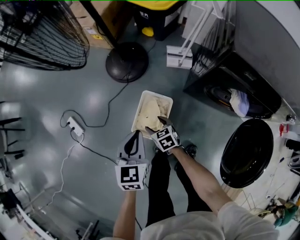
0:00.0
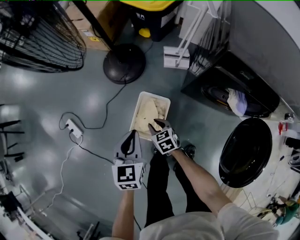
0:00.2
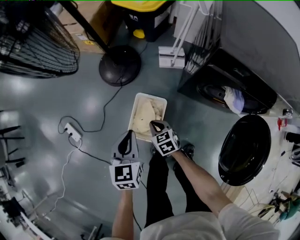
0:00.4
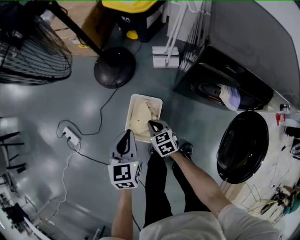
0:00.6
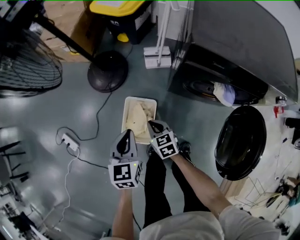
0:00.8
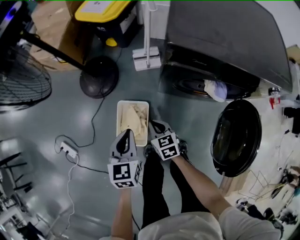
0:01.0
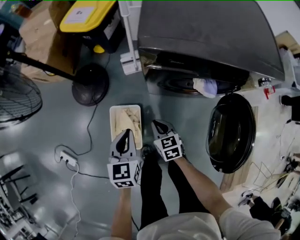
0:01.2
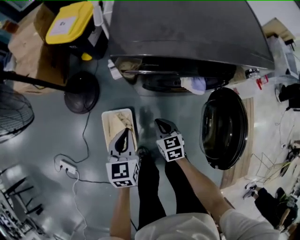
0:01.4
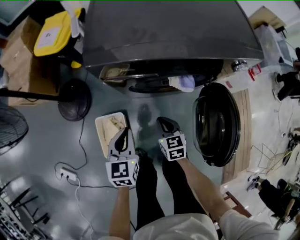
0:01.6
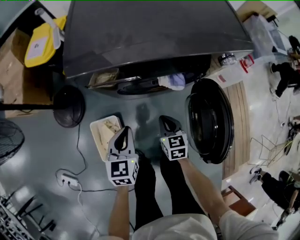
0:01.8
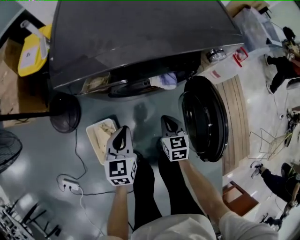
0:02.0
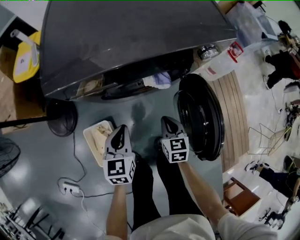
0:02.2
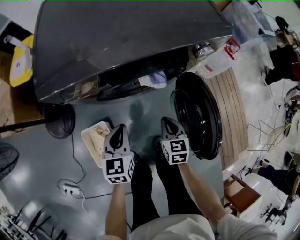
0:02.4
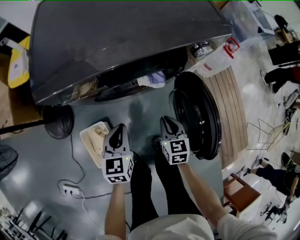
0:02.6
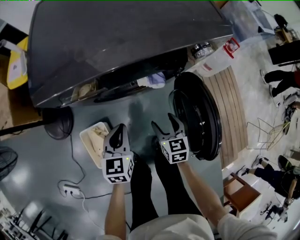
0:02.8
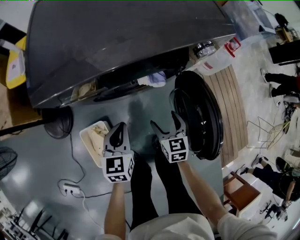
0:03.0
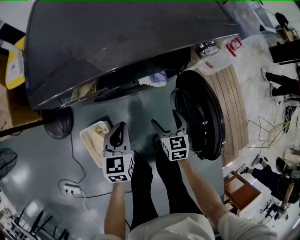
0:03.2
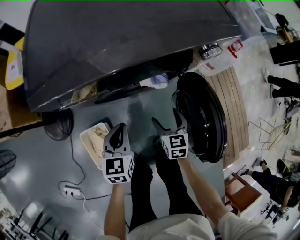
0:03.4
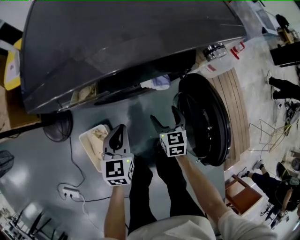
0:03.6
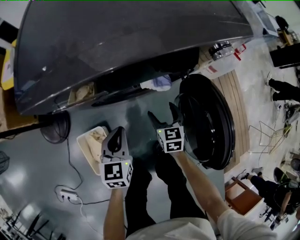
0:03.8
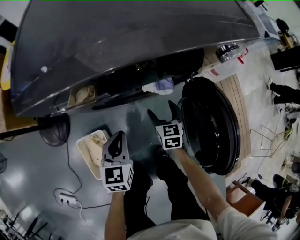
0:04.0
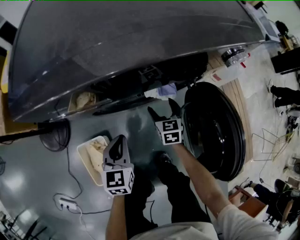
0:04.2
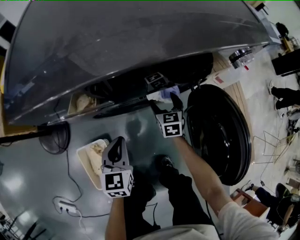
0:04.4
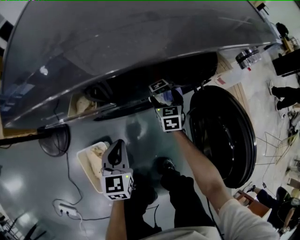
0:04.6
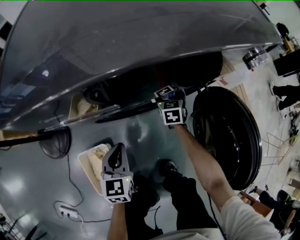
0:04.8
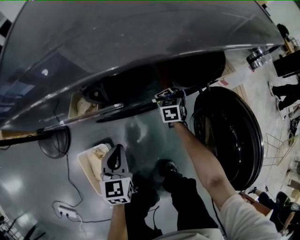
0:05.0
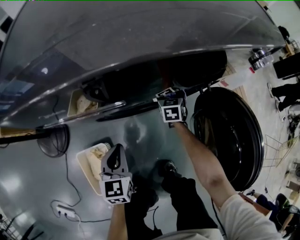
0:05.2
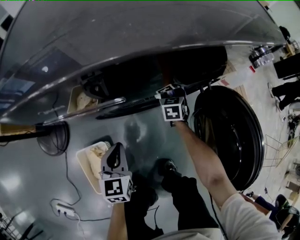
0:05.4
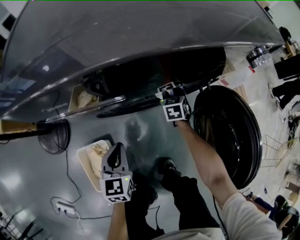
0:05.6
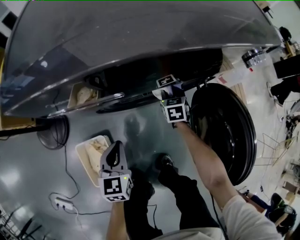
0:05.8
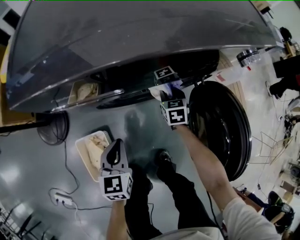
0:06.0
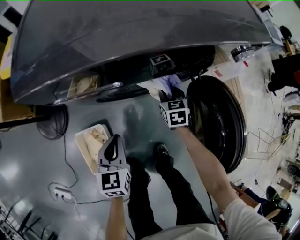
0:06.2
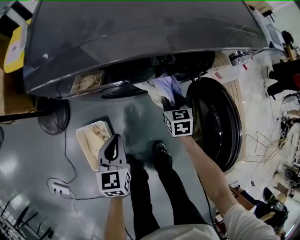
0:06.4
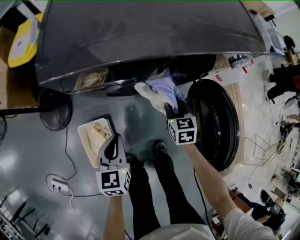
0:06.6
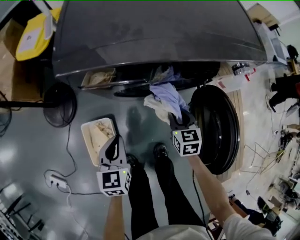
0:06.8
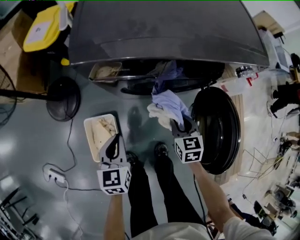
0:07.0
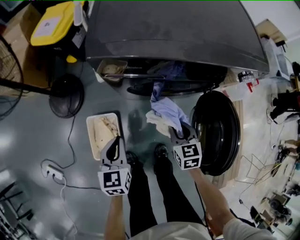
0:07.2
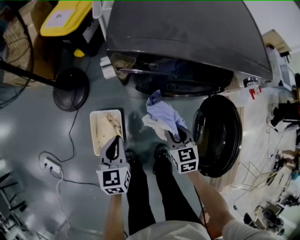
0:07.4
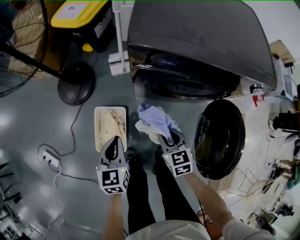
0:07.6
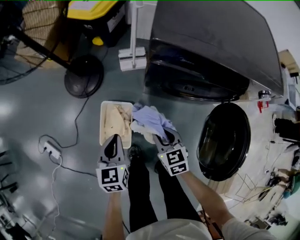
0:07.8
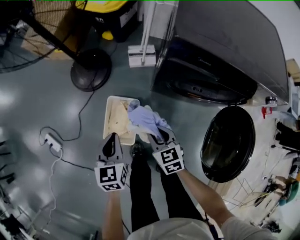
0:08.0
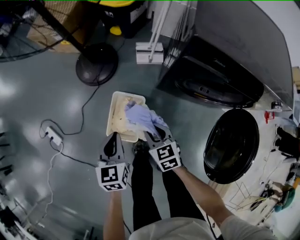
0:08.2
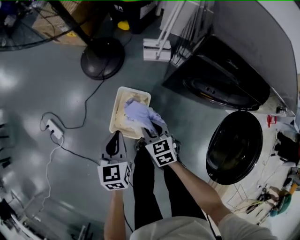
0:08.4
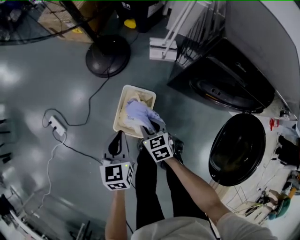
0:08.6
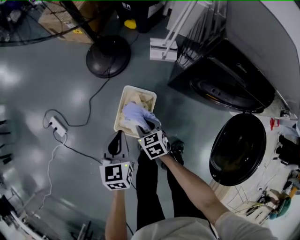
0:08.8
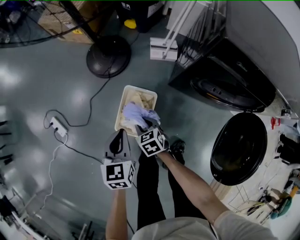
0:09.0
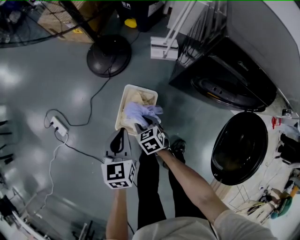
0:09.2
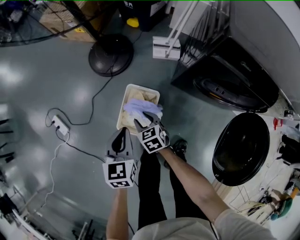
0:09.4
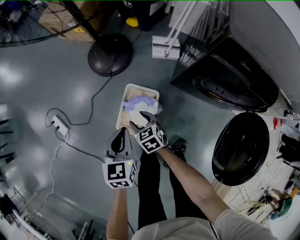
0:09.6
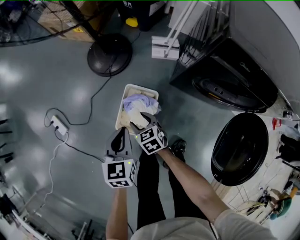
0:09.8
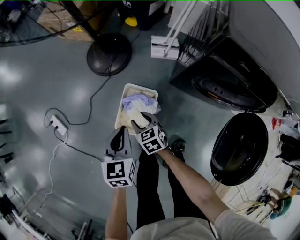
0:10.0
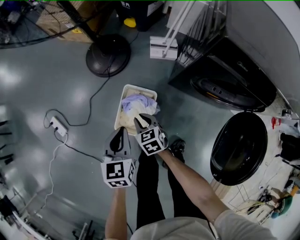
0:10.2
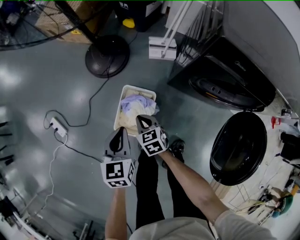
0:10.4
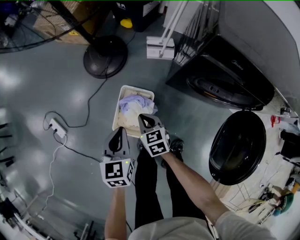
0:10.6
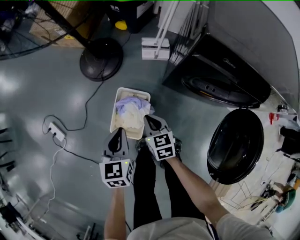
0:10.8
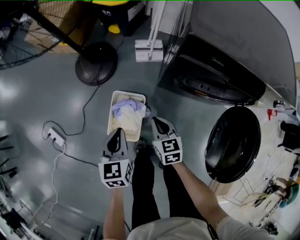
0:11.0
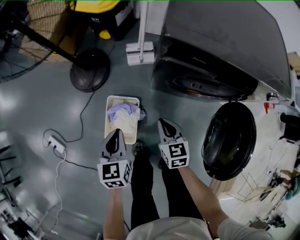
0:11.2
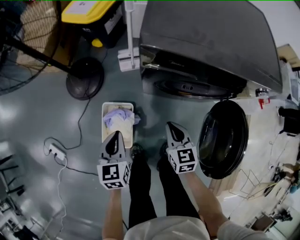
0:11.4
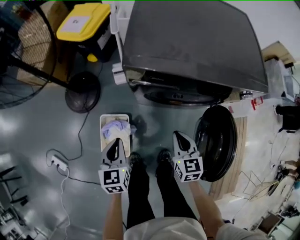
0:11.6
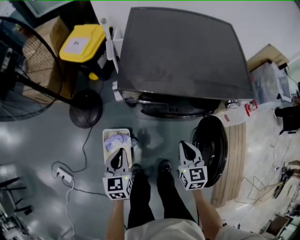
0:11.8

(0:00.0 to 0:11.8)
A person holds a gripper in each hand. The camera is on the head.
0:00.0 - 0:01.4: The right gripper ends up roughly 30 cm from where it was, swivels approximately 40 degrees, and closes, while the left gripper shifts by some 25 cm, and turns by about 20 degrees.
0:01.4 - 0:03.0: The left gripper goes roughly 20 cm to the right and forward. Meanwhile the right gripper heads to the right, covering about 20 cm, rotates about 20 degrees, and opens.
0:03.0 - 0:04.4: The right gripper shifts approximately 20 cm forward and downward; the left gripper moves downward, roughly 10 cm.
0:04.4 - 0:06.0: The right gripper closes its fingers.
0:06.0 - 0:07.4: The left gripper travels to the left, upward and backward by roughly 20 cm; the right gripper is displaced backward, upward and to the left by about 30 cm, and swivels roughly 20 degrees.
0:07.4 - 0:08.8: The right gripper moves about 35 cm, and swivels roughly 30 degrees, while the left gripper moves about 20 cm, and swivels roughly 20 degrees.
0:08.8 - 0:10.4: The grippers move only a little.
0:10.4 - 0:11.8: The left gripper moves about 25 cm. Meanwhile the right gripper changes place by about 50 cm, and turns by some 40 degrees.

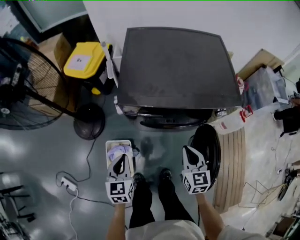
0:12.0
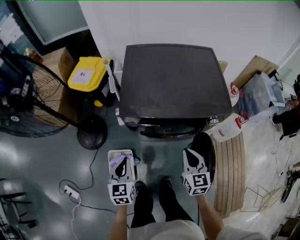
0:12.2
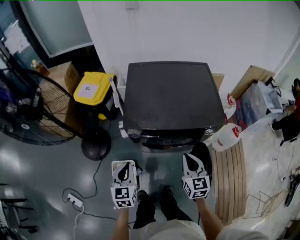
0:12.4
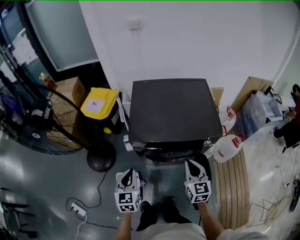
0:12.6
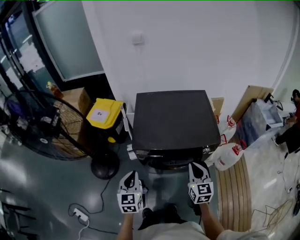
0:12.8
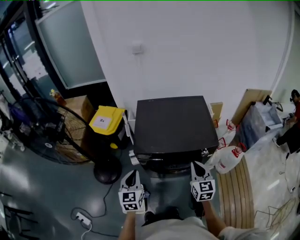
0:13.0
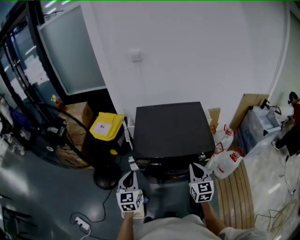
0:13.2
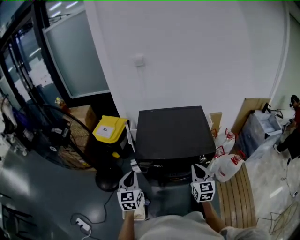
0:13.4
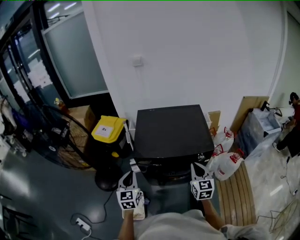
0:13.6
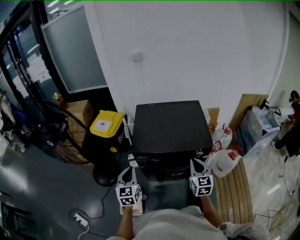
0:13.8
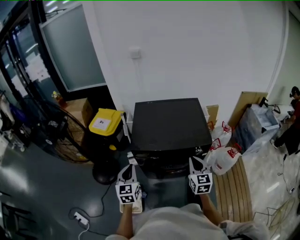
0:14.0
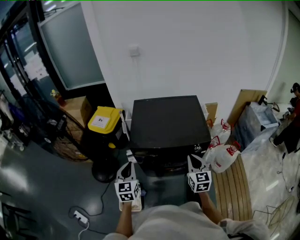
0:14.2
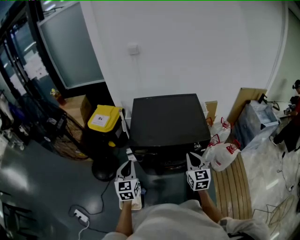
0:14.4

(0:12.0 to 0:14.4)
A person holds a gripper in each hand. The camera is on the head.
0:12.0 - 0:13.2: The two grippers go some 25 cm upward.
0:13.2 - 0:14.4: The grippers move only a little.

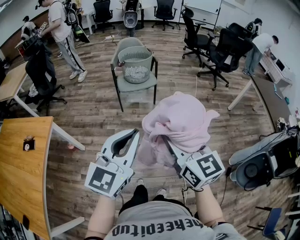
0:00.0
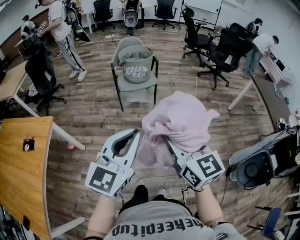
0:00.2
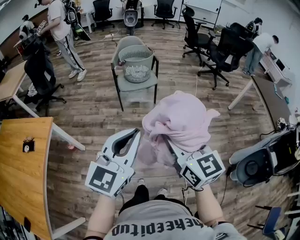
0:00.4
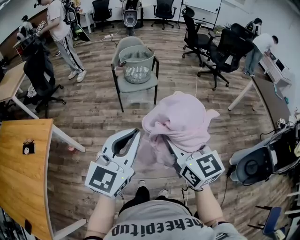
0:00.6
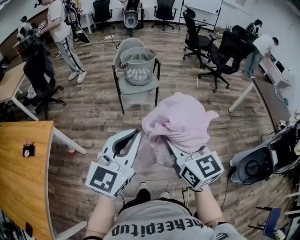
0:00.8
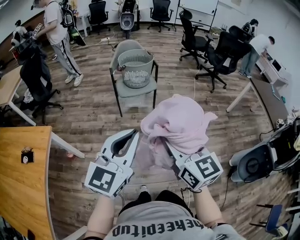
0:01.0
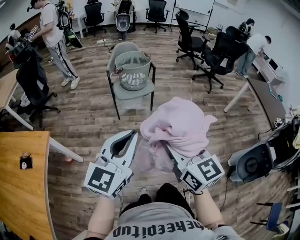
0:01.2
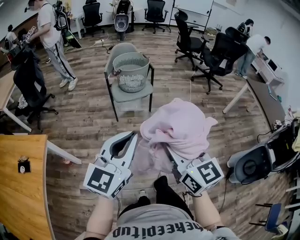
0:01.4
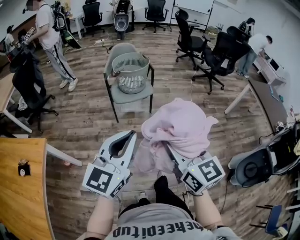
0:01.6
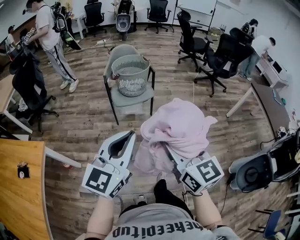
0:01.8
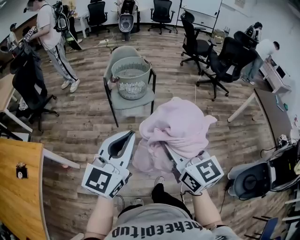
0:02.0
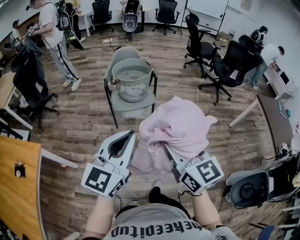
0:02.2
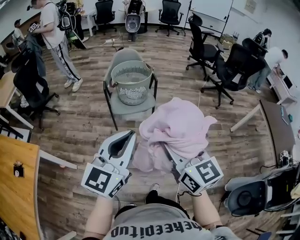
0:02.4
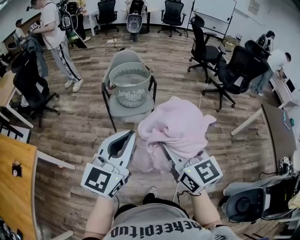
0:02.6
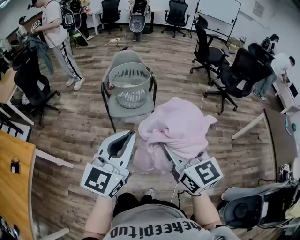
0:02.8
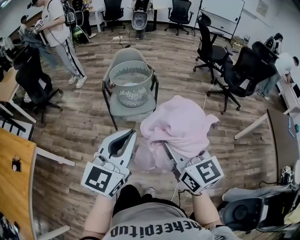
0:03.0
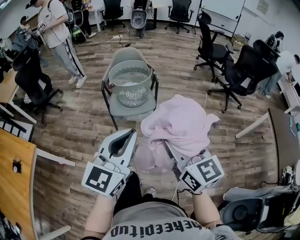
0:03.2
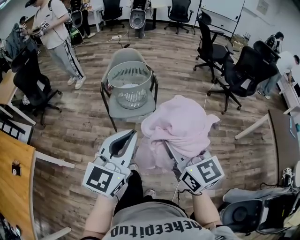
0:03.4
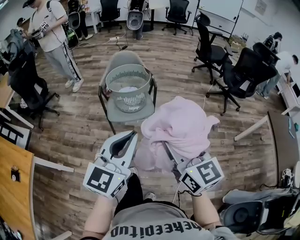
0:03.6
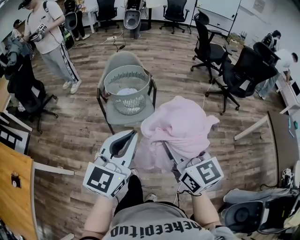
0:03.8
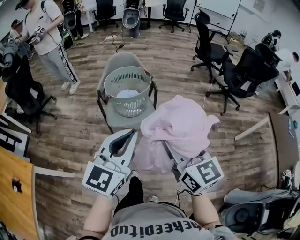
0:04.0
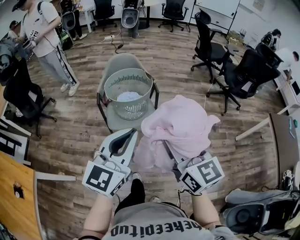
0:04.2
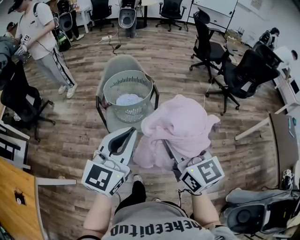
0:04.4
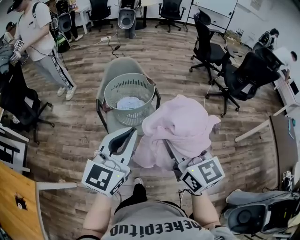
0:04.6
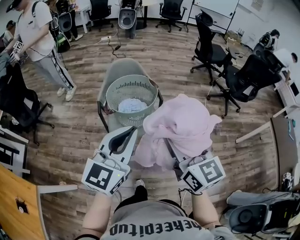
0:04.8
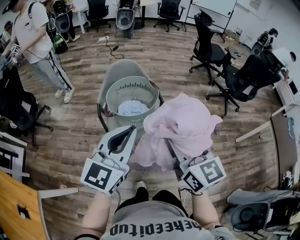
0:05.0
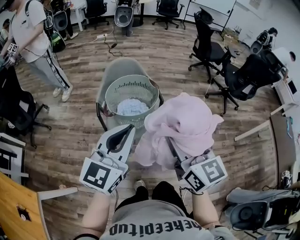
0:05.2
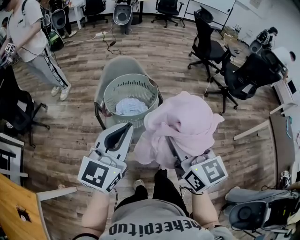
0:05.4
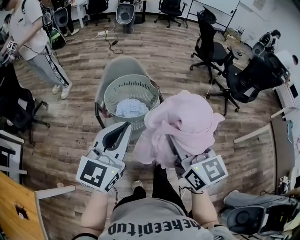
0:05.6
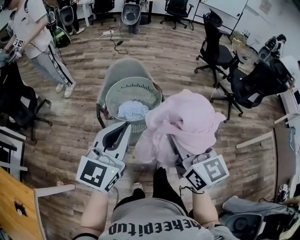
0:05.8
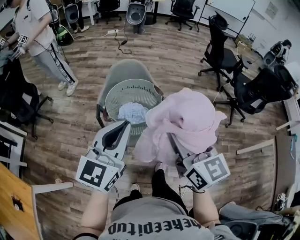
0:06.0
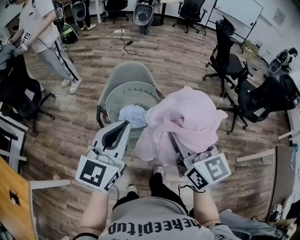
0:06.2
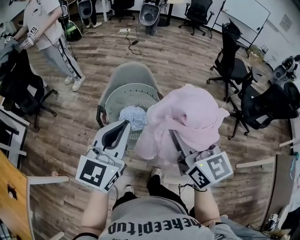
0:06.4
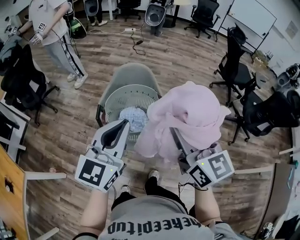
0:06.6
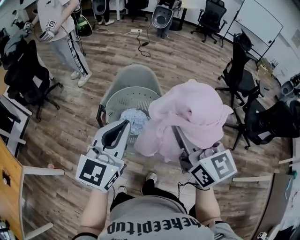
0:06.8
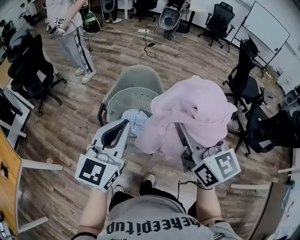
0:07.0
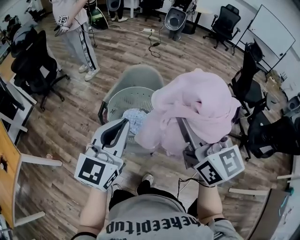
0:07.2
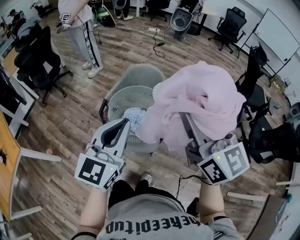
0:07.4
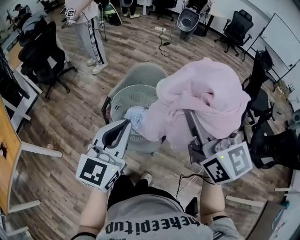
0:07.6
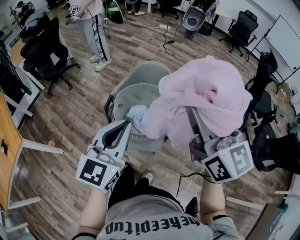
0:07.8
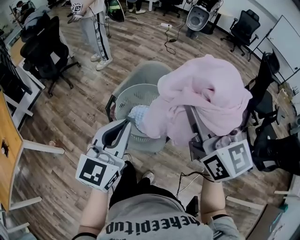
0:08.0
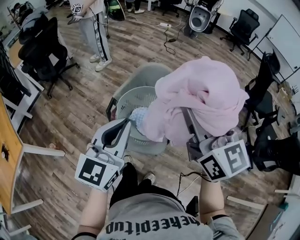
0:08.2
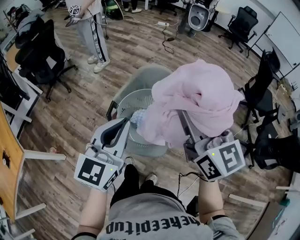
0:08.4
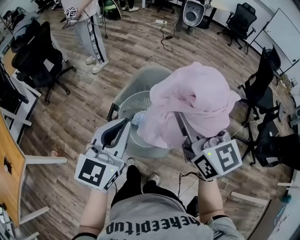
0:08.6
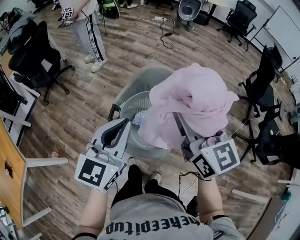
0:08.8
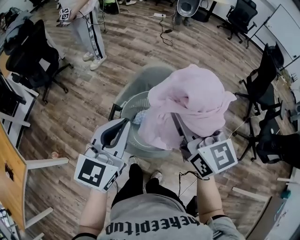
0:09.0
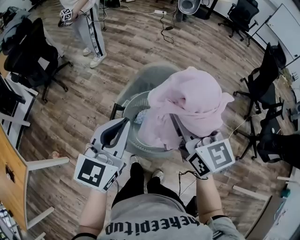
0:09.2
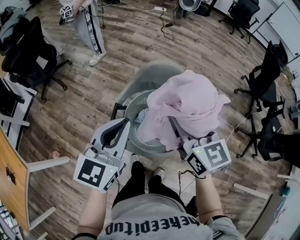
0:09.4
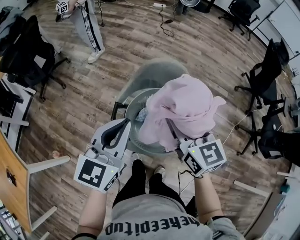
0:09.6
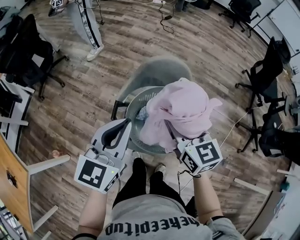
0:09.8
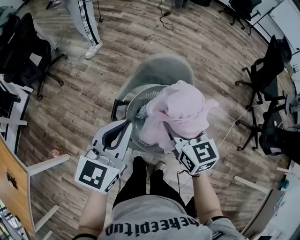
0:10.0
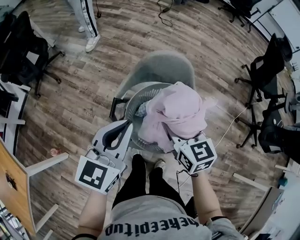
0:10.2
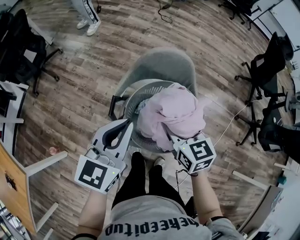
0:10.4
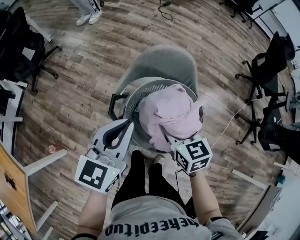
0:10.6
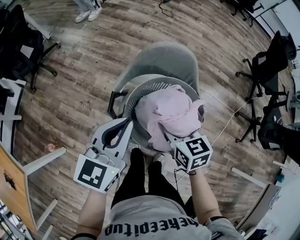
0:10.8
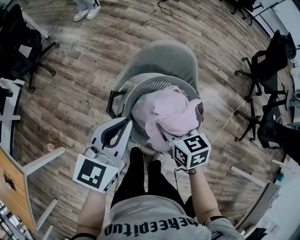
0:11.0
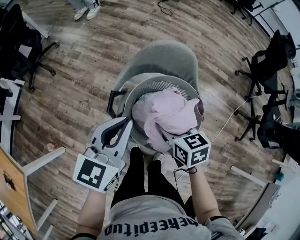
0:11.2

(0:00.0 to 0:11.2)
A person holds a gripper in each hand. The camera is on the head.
0:00.0 - 0:01.6: The left gripper is displaced forward and to the left by approximately 15 cm. Meanwhile the right gripper shifts about 10 cm forward.
0:01.6 - 0:03.2: The grippers both shift forward and to the right by approximately 25 cm.
0:03.2 - 0:04.8: Both grippers travel together forward and to the left, approximately 25 cm.
0:04.8 - 0:06.4: Both grippers travel together forward, roughly 15 cm.
0:06.4 - 0:08.0: The right gripper shifts approximately 15 cm forward and upward.
0:08.0 - 0:09.6: The right gripper is displaced downward, forward and to the left by approximately 25 cm, while the left gripper is displaced forward, to the left and downward by about 20 cm.
0:09.6 - 0:11.2: The right gripper moves downward, roughly 20 cm, and turns by approximately 30 degrees. Meanwhile the left gripper travels downward by some 5 cm.
